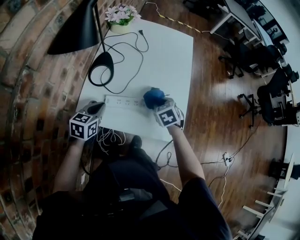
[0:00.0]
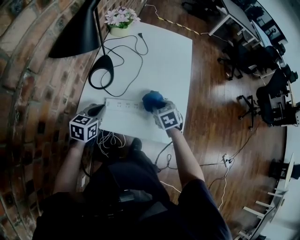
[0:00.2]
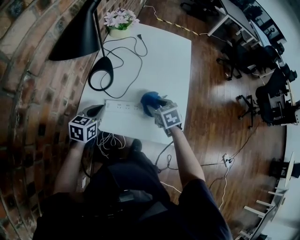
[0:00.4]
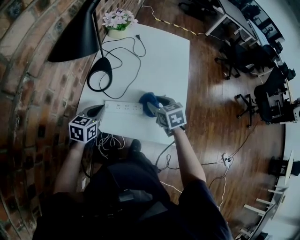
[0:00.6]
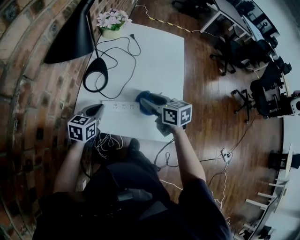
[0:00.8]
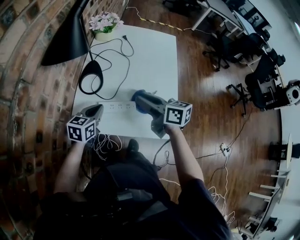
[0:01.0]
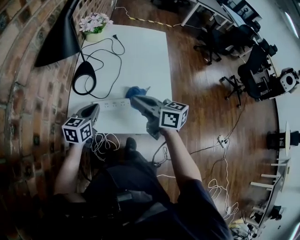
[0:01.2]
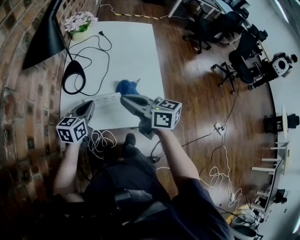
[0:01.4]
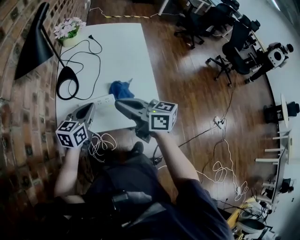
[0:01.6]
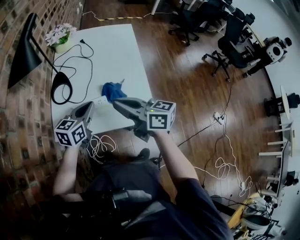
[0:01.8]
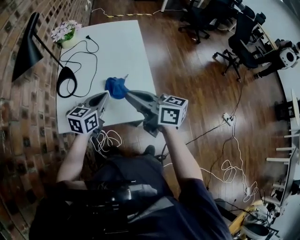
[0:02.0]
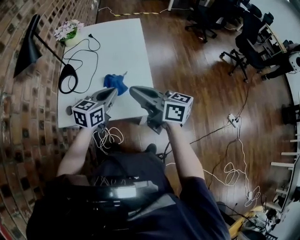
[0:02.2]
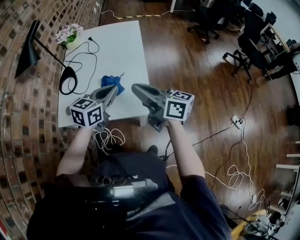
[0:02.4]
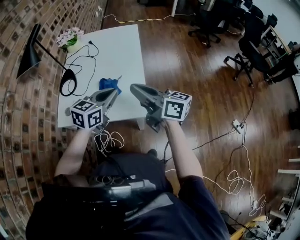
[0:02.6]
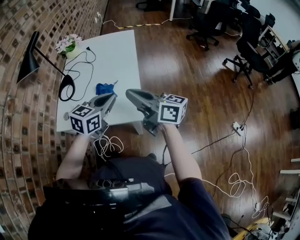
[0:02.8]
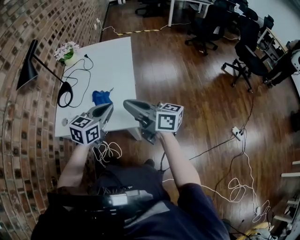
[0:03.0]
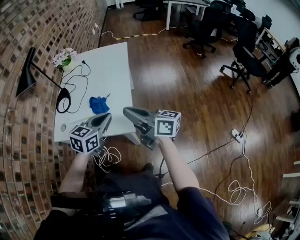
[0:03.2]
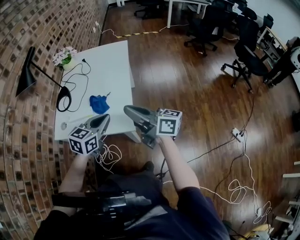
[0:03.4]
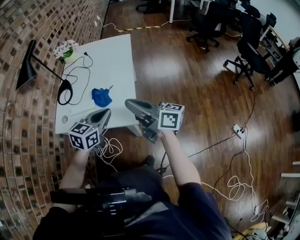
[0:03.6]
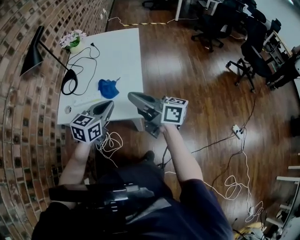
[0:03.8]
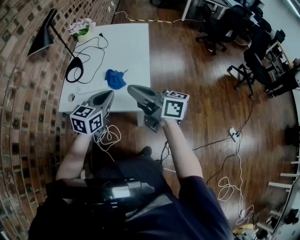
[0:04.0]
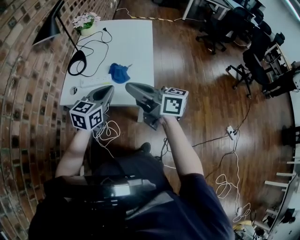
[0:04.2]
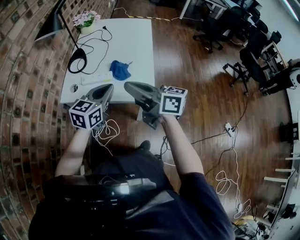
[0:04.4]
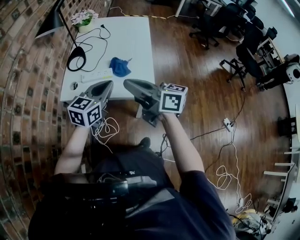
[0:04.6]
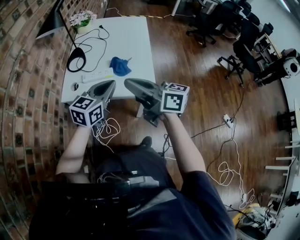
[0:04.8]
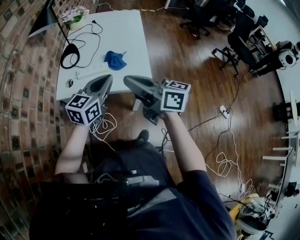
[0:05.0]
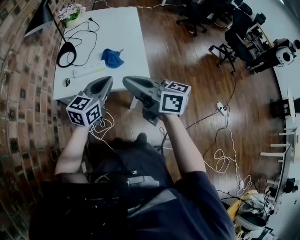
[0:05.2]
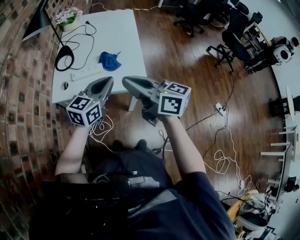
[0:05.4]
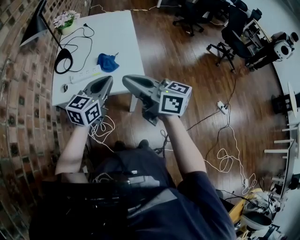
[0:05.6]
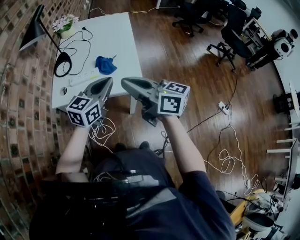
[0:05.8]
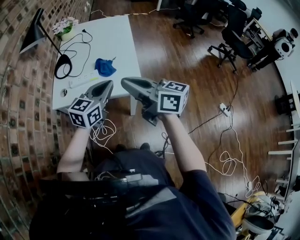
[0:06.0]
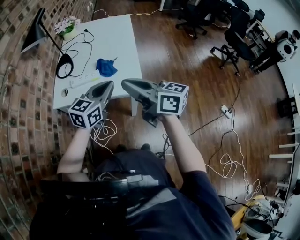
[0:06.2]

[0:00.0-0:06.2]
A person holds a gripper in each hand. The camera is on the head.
0.0 to 1.6 s: The left gripper heads to the right and upward, covering approximately 10 cm; the right gripper travels upward and backward by about 20 cm, and points its fingers some 50 degrees further upward.
1.6 to 3.2 s: Both grippers travel together to the right, about 25 cm.
3.2 to 4.6 s: Both grippers travel together to the left, about 15 cm.
4.6 to 6.2 s: The grippers both shift to the right by some 5 cm.

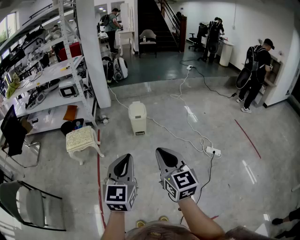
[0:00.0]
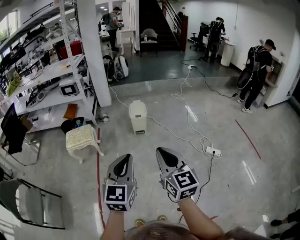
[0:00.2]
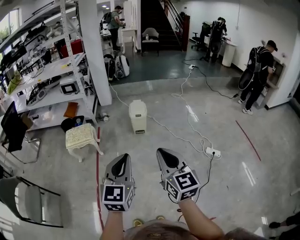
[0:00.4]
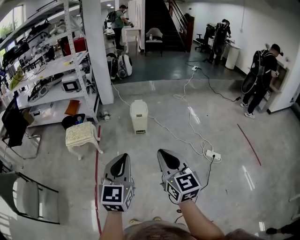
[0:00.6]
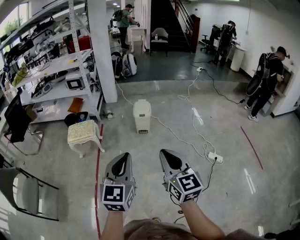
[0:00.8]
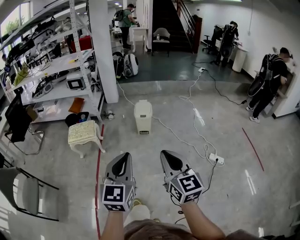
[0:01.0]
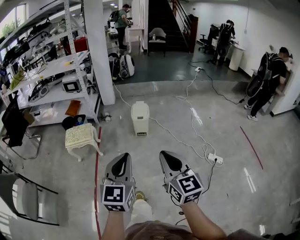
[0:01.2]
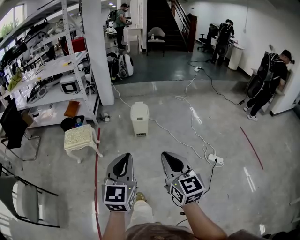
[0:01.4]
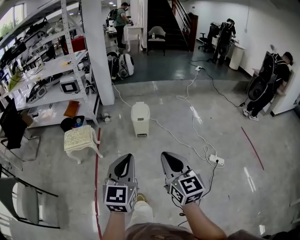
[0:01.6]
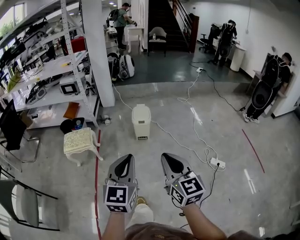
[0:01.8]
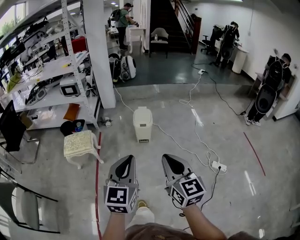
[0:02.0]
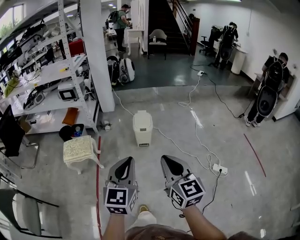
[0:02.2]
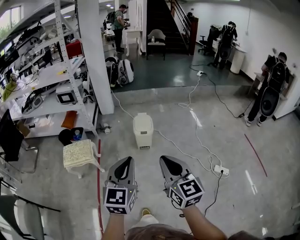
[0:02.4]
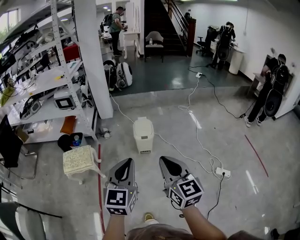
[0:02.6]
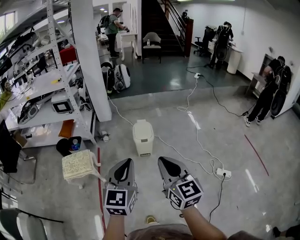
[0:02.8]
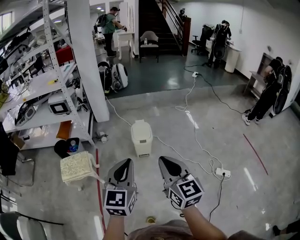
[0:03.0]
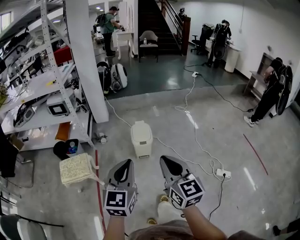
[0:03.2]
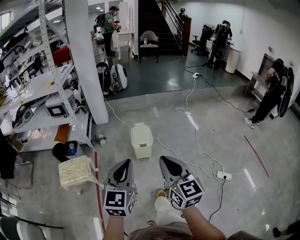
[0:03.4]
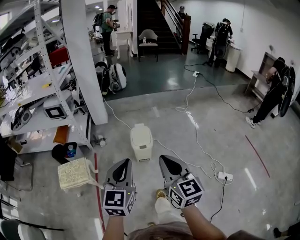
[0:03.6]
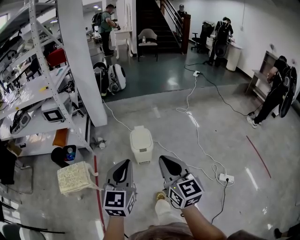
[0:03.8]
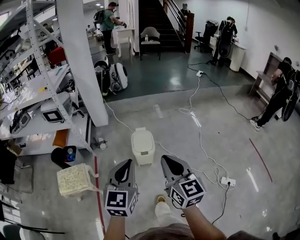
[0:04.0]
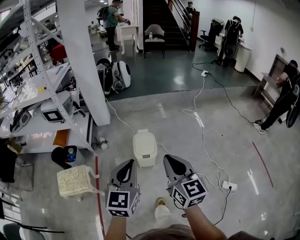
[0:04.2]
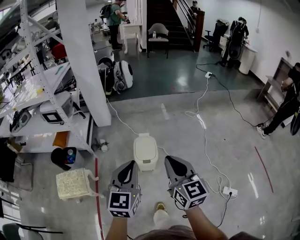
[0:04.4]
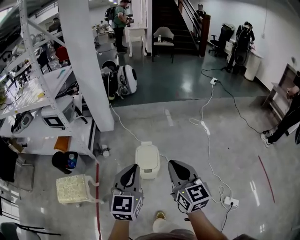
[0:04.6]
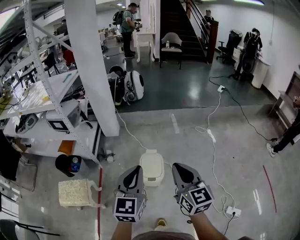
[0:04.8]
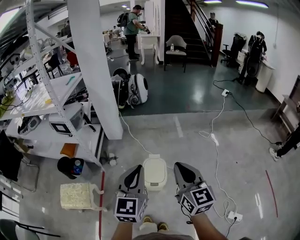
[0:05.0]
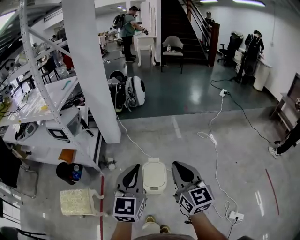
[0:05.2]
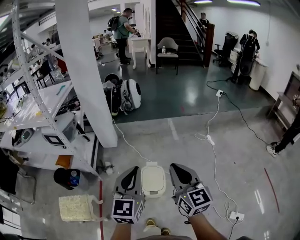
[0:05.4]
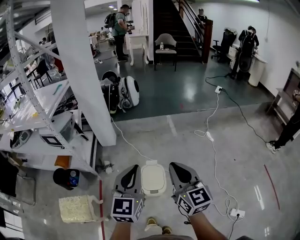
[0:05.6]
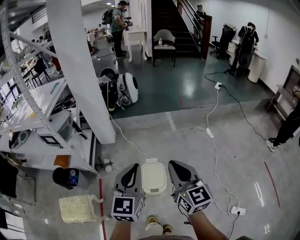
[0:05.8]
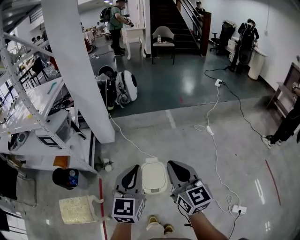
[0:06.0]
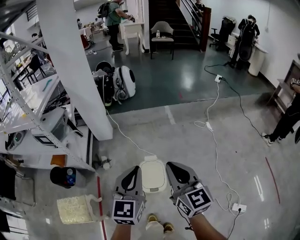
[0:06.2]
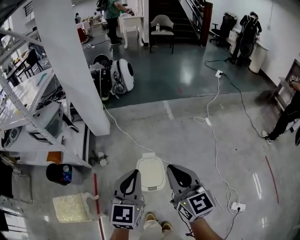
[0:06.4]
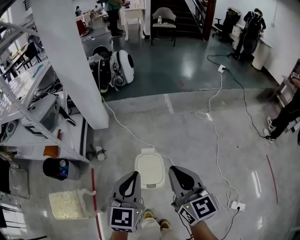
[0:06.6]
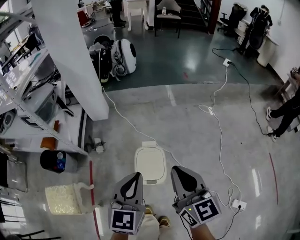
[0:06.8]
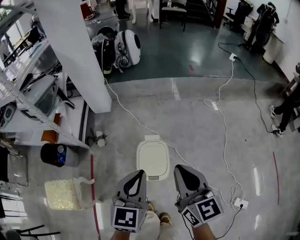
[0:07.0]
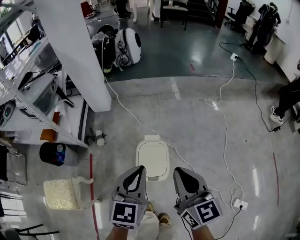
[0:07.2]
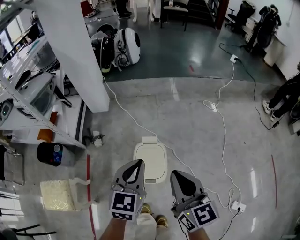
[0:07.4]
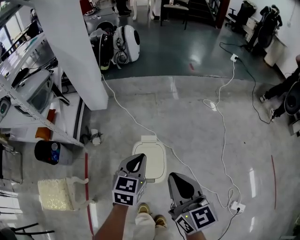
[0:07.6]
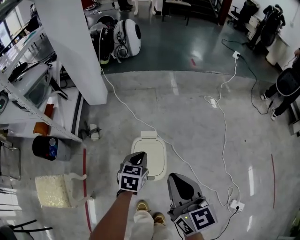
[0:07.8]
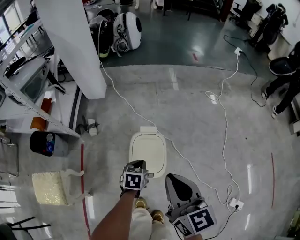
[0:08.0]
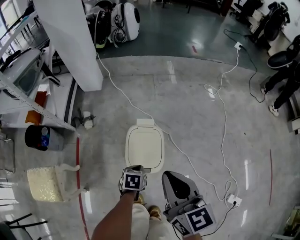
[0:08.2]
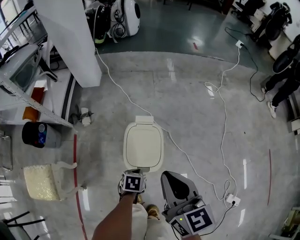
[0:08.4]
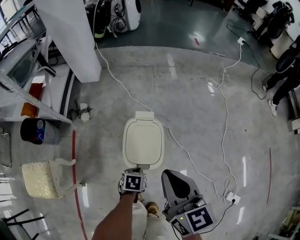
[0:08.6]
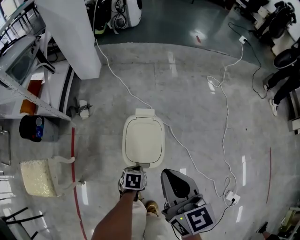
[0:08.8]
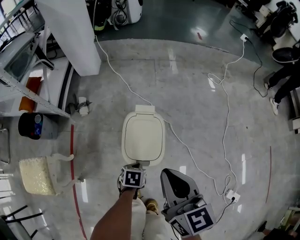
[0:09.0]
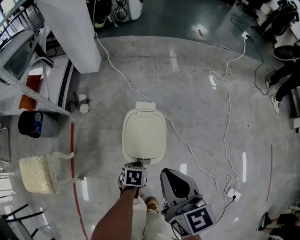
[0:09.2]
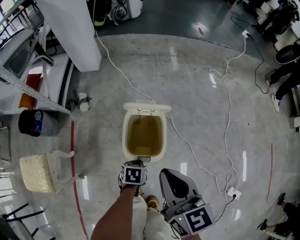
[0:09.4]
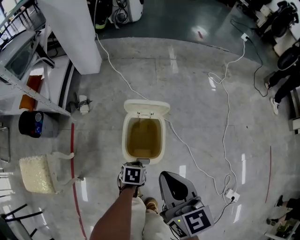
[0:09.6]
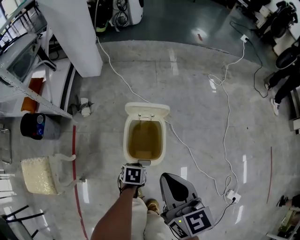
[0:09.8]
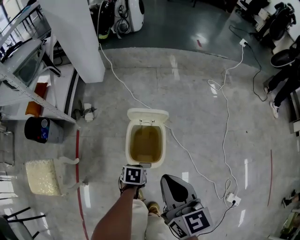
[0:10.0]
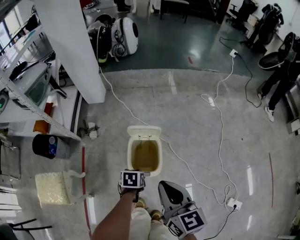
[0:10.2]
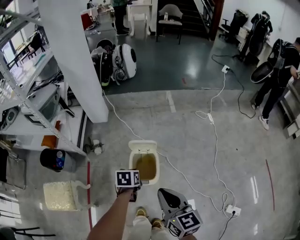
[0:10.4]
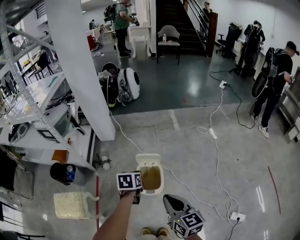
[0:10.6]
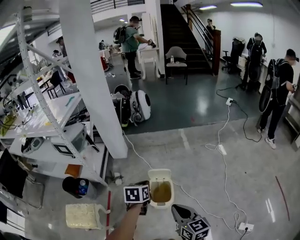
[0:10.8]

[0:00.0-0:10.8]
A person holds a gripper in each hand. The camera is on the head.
0.0 to 1.6 s: Both grippers travel together forward, approximately 10 cm.
1.6 to 3.0 s: The grippers both shift forward by about 25 cm.
3.0 to 4.6 s: Both grippers travel together forward, some 35 cm.
4.6 to 6.2 s: The two grippers go some 20 cm forward.
6.2 to 7.8 s: The right gripper is displaced downward by about 20 cm. The left gripper is displaced downward by some 40 cm, and angles its fingers downward, by some 30 degrees.
7.8 to 9.2 s: The right gripper travels downward by some 10 cm. Meanwhile the left gripper goes roughly 25 cm downward and backward, and swivels about 30 degrees.
9.2 to 10.8 s: The right gripper shifts roughly 25 cm upward and backward, while the left gripper heads upward, covering roughly 50 cm, and swivels approximately 30 degrees.

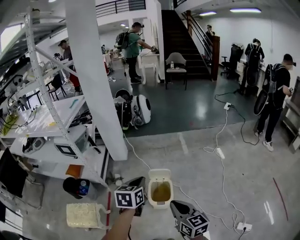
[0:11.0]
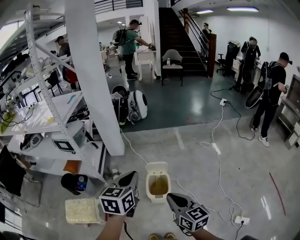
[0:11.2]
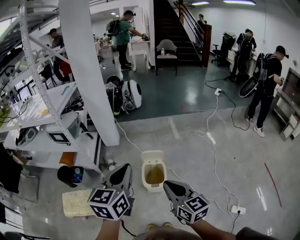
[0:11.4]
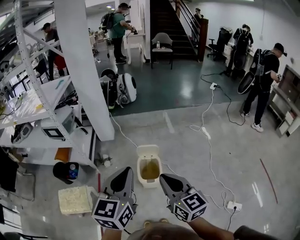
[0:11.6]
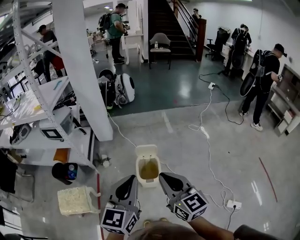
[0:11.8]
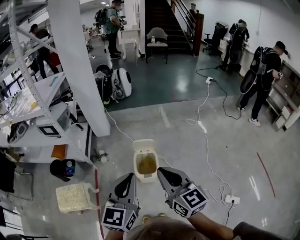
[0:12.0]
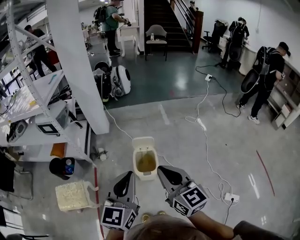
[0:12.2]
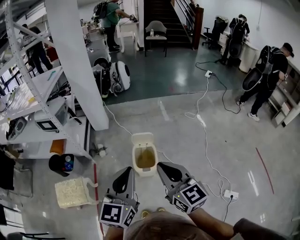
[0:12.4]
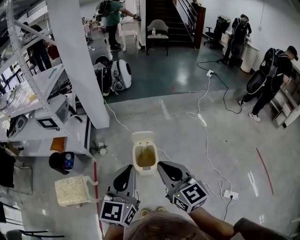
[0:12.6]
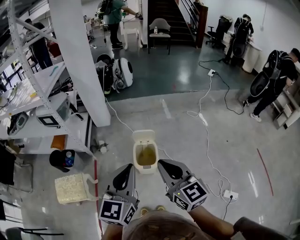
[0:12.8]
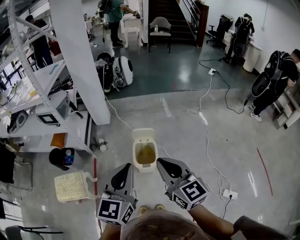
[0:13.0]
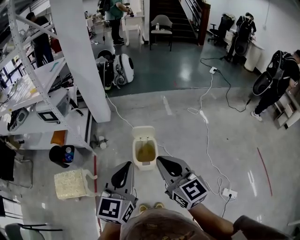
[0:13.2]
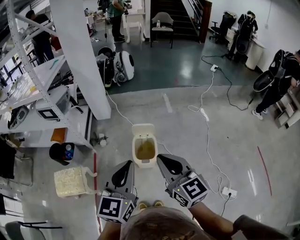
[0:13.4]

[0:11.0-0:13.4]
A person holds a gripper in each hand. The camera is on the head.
11.0 to 12.2 s: The left gripper shifts roughly 20 cm backward and upward, and turns by roughly 30 degrees, while the right gripper goes roughly 10 cm upward.
12.2 to 13.4 s: The grippers make only small movements.

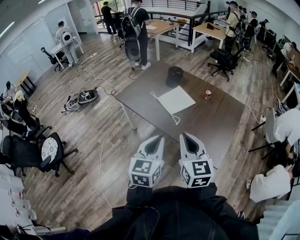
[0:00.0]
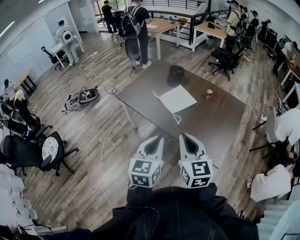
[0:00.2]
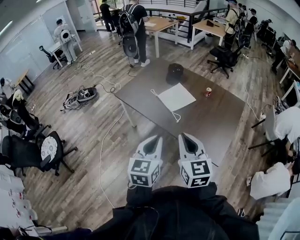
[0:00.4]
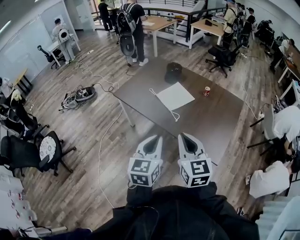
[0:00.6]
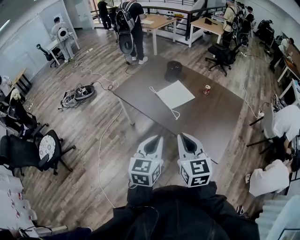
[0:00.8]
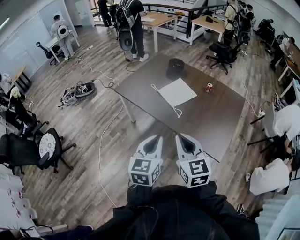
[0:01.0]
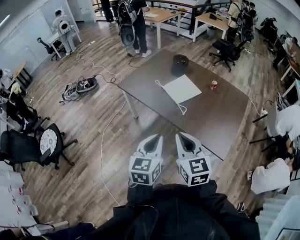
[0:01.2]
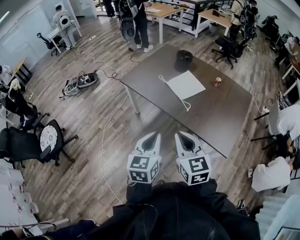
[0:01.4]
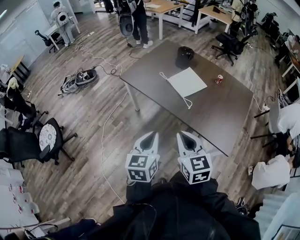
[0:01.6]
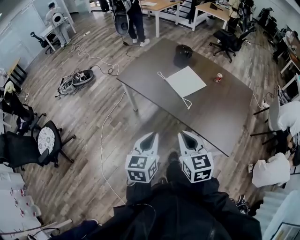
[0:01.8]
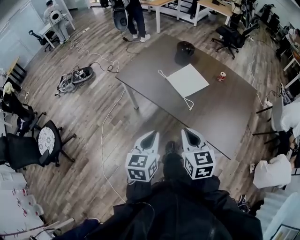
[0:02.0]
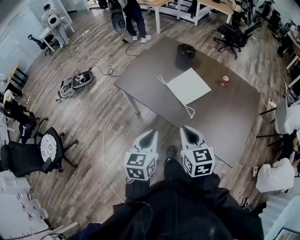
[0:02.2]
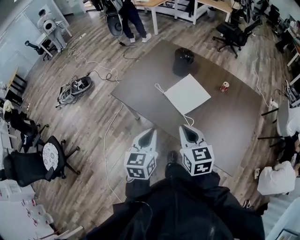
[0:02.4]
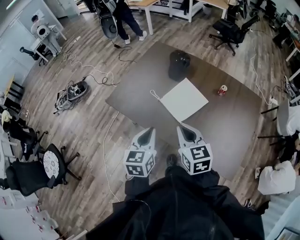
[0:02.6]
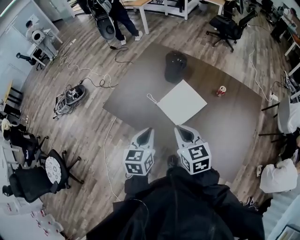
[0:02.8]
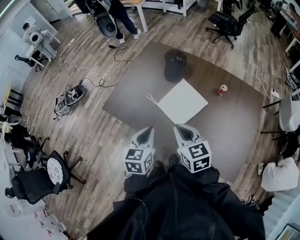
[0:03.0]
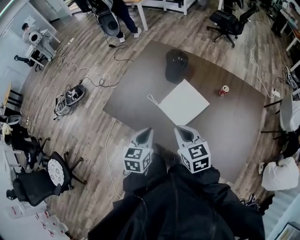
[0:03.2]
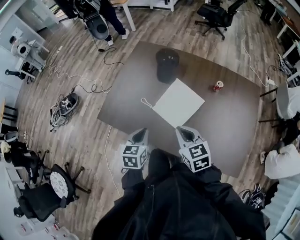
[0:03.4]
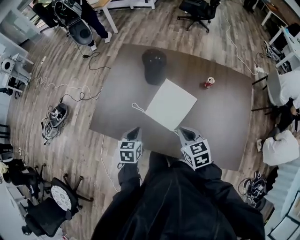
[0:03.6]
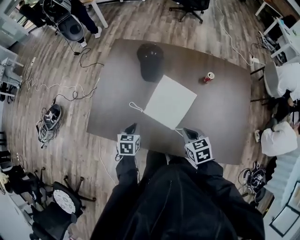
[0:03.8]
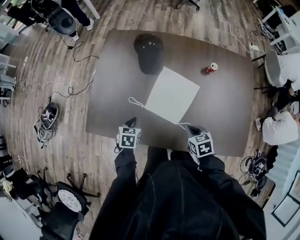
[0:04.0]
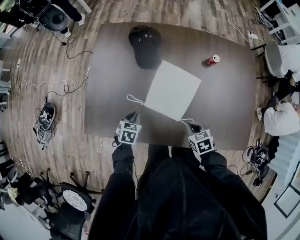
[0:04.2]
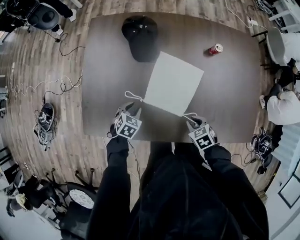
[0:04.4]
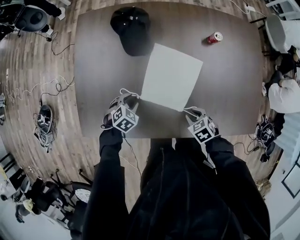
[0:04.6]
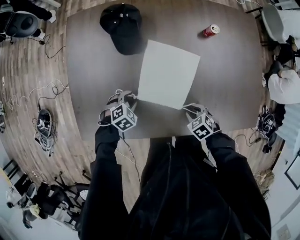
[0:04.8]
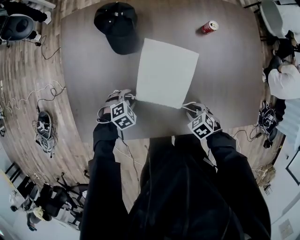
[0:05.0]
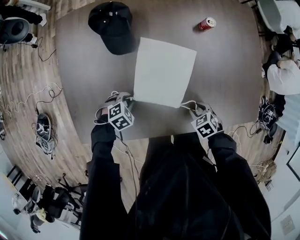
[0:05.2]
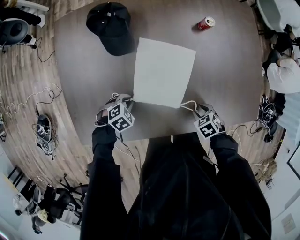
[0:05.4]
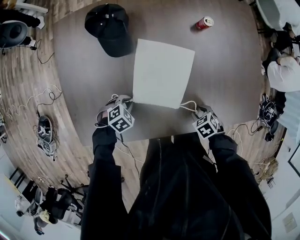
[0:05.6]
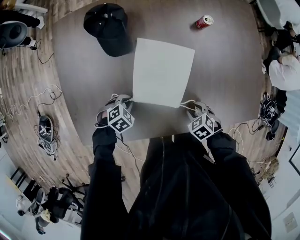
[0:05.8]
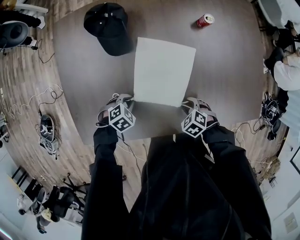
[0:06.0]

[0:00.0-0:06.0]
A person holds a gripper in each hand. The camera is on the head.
0.0 to 1.6 s: The grippers both shift to the left and downward by approximately 15 cm.
1.6 to 3.0 s: Both grippers travel together forward, roughly 40 cm.
3.0 to 4.4 s: Both grippers move downward, approximately 30 cm. The right gripper points its fingers about 40 degrees further downward. The left gripper angles its fingers downward, by some 30 degrees, and opens up.
4.4 to 6.0 s: Both grippers travel together downward, some 5 cm. The right gripper opens its fingers; the left gripper rotates some 40 degrees.
